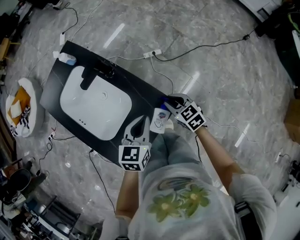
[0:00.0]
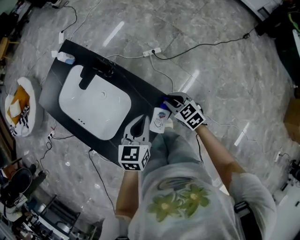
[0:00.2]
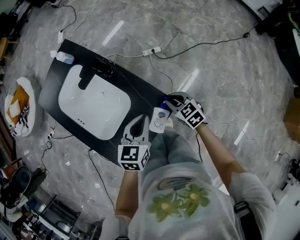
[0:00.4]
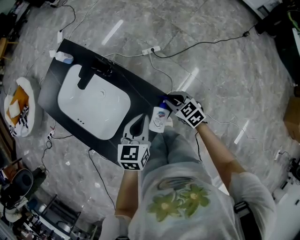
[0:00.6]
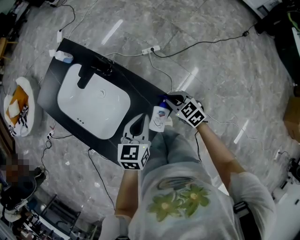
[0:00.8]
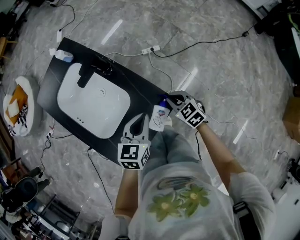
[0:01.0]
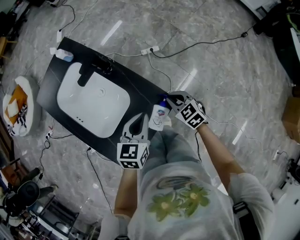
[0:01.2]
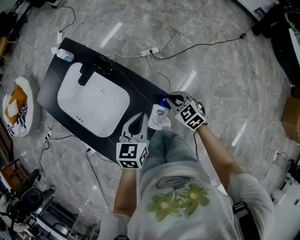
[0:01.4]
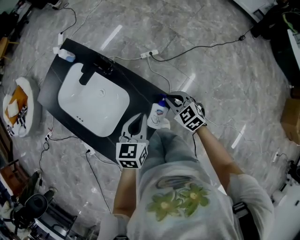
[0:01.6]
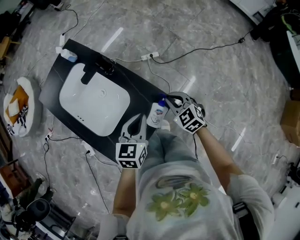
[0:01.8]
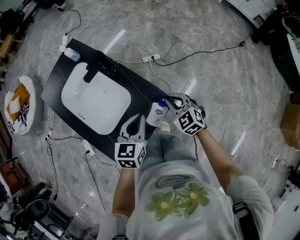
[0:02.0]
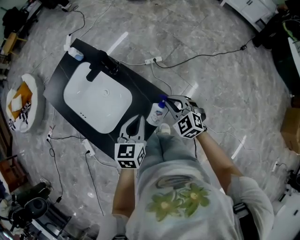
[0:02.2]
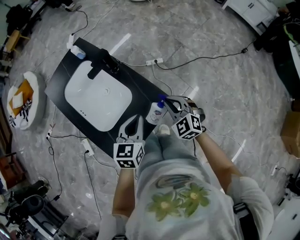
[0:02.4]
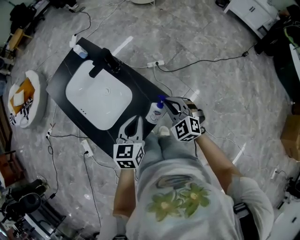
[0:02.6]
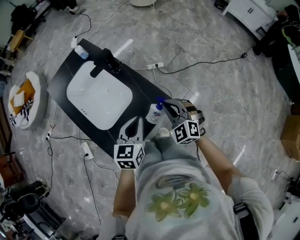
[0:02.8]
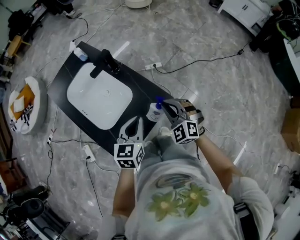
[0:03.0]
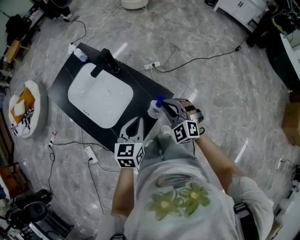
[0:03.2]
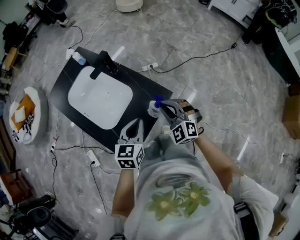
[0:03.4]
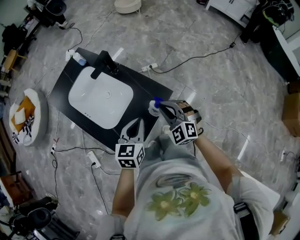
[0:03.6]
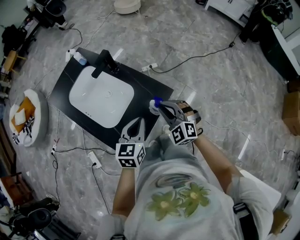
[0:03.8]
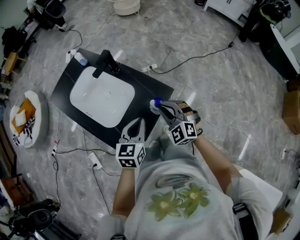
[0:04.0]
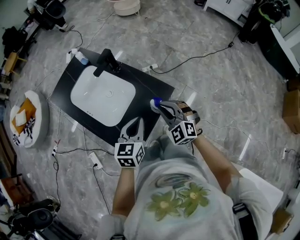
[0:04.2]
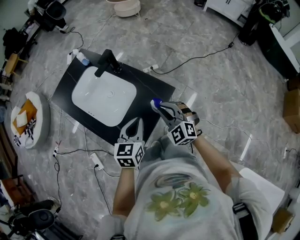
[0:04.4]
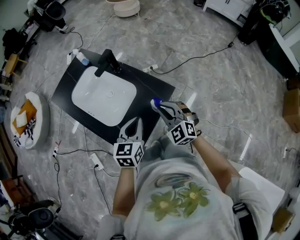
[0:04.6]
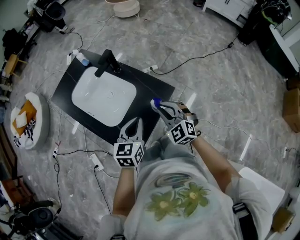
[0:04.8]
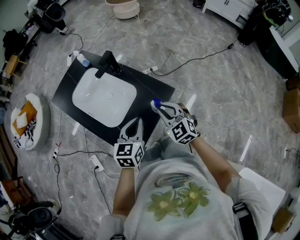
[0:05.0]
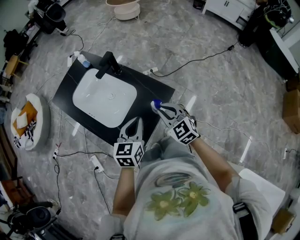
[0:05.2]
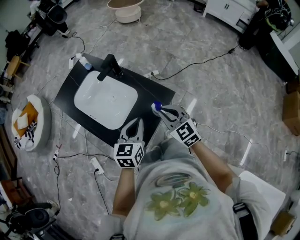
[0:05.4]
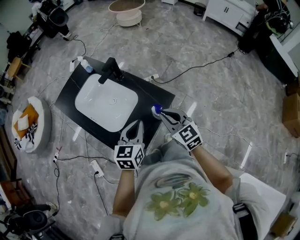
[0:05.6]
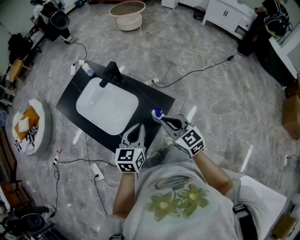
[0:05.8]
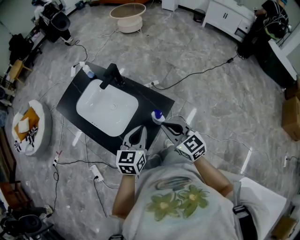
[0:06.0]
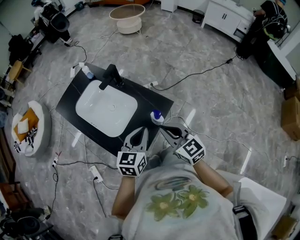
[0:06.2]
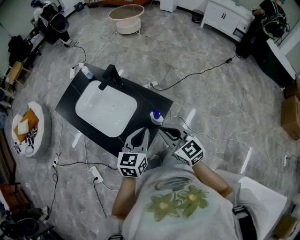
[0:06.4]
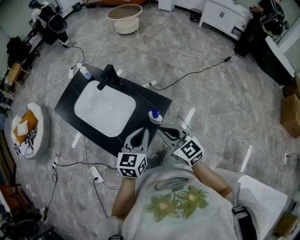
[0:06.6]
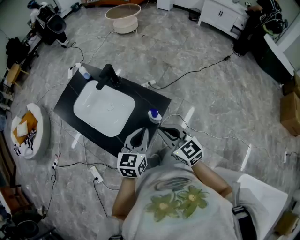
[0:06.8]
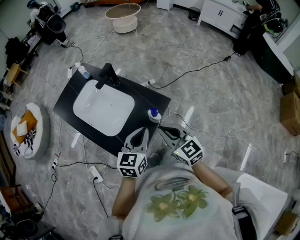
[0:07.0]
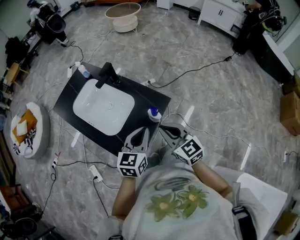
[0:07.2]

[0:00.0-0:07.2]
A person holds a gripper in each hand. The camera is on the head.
0:00.0 to 0:01.4: The grippers move only a little.
0:01.4 to 0:02.8: The right gripper shifts about 15 cm upward and backward, and turns by roughly 30 degrees; the left gripper moves backward, about 10 cm.
0:02.8 to 0:04.4: The grippers both shift backward and to the left by approximately 10 cm.
0:04.4 to 0:05.8: The right gripper is displaced upward by roughly 5 cm, and swivels about 40 degrees.
0:05.8 to 0:07.2: The grippers move only a little.

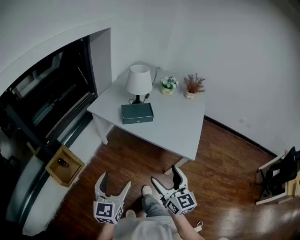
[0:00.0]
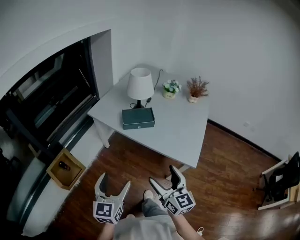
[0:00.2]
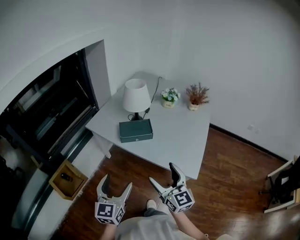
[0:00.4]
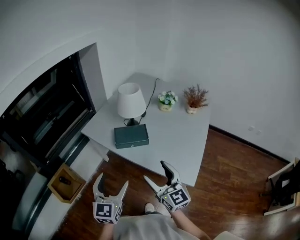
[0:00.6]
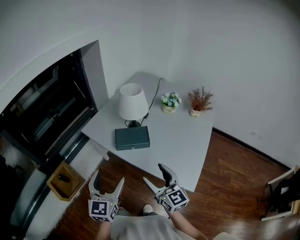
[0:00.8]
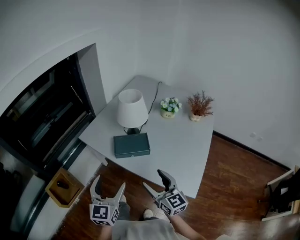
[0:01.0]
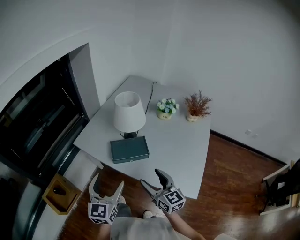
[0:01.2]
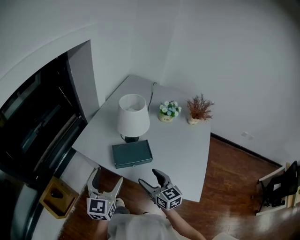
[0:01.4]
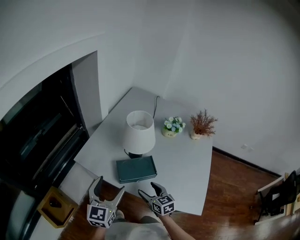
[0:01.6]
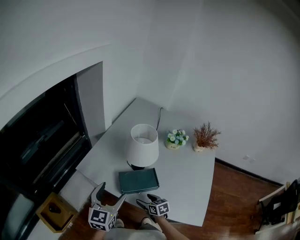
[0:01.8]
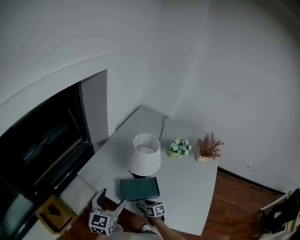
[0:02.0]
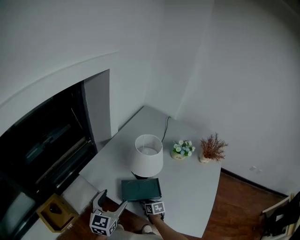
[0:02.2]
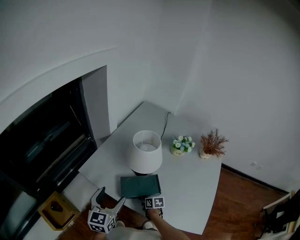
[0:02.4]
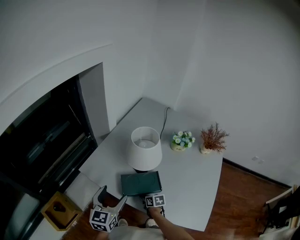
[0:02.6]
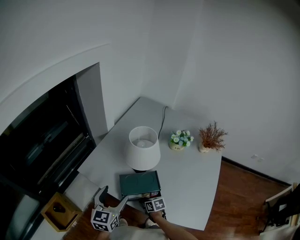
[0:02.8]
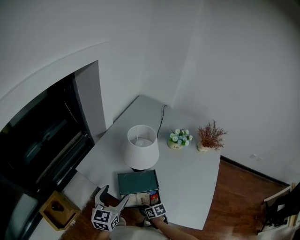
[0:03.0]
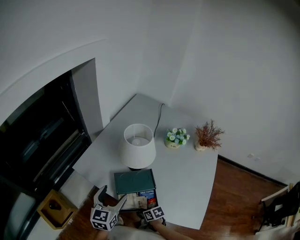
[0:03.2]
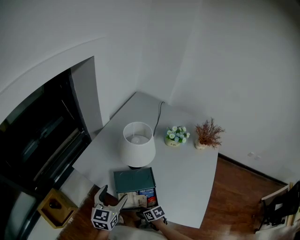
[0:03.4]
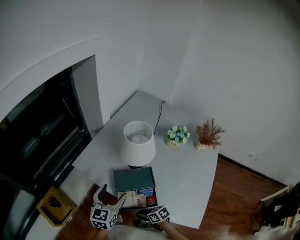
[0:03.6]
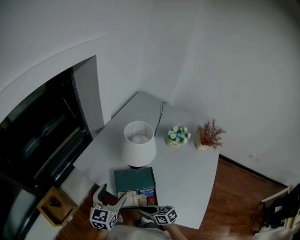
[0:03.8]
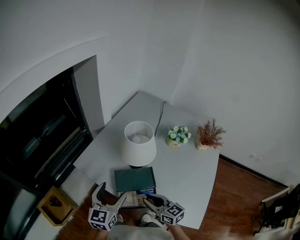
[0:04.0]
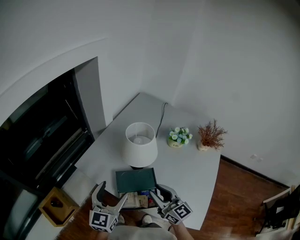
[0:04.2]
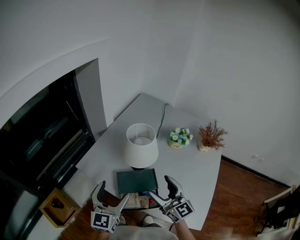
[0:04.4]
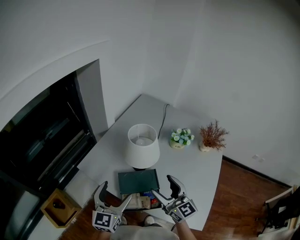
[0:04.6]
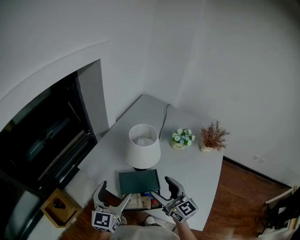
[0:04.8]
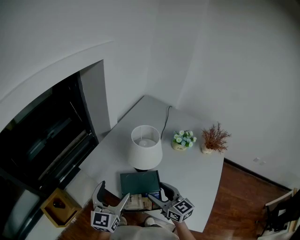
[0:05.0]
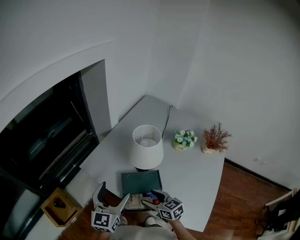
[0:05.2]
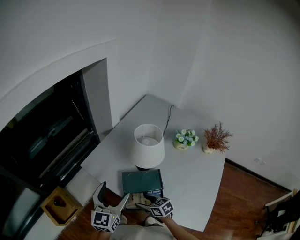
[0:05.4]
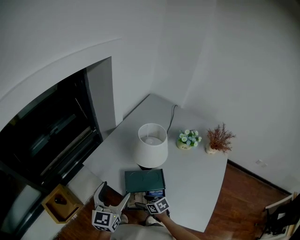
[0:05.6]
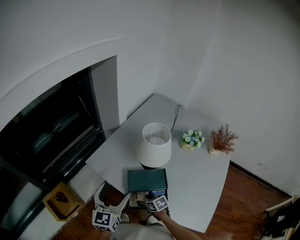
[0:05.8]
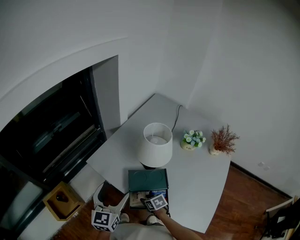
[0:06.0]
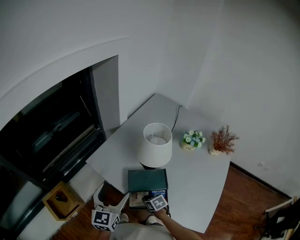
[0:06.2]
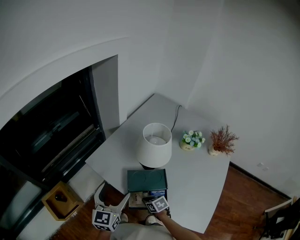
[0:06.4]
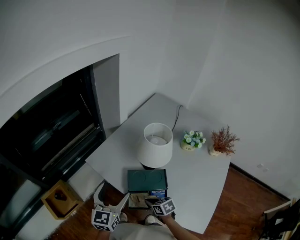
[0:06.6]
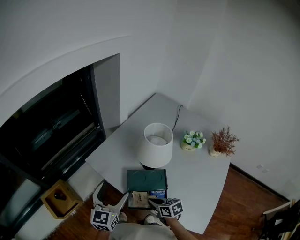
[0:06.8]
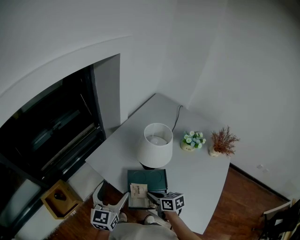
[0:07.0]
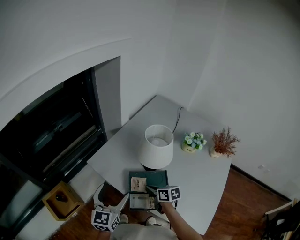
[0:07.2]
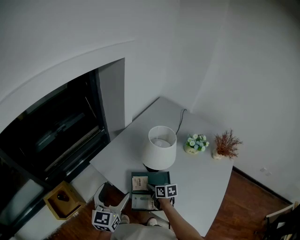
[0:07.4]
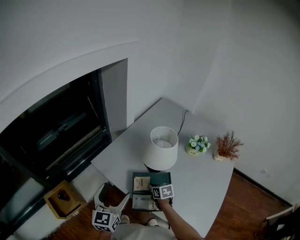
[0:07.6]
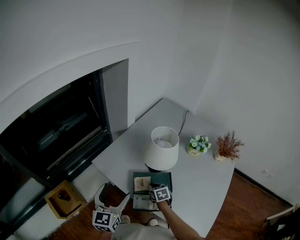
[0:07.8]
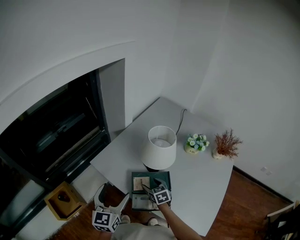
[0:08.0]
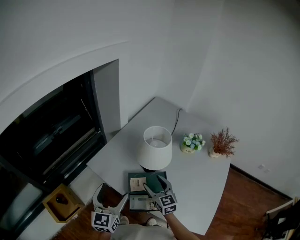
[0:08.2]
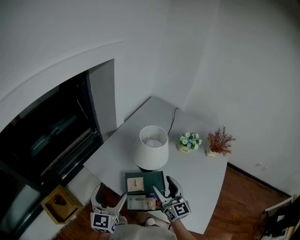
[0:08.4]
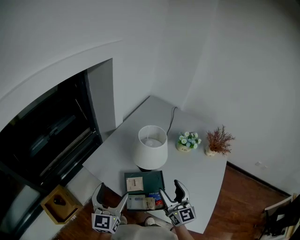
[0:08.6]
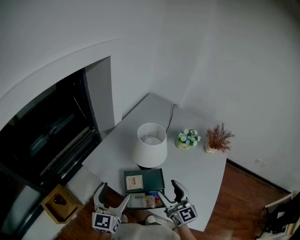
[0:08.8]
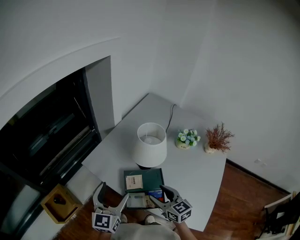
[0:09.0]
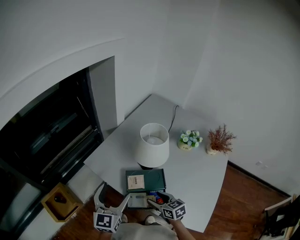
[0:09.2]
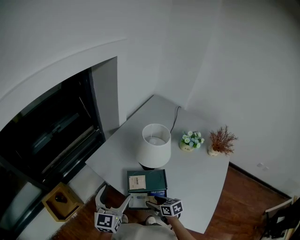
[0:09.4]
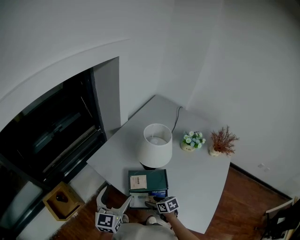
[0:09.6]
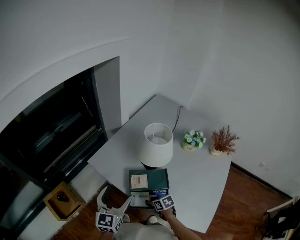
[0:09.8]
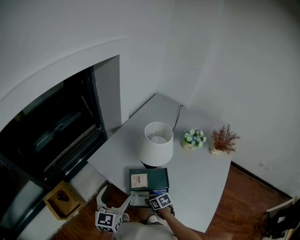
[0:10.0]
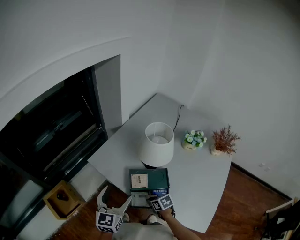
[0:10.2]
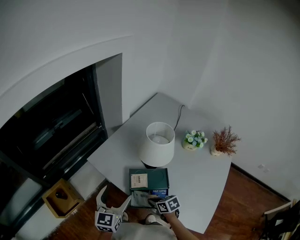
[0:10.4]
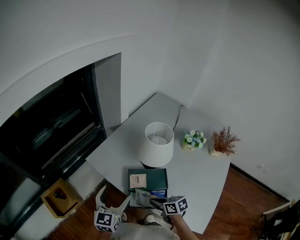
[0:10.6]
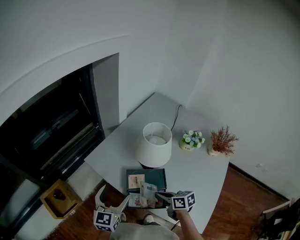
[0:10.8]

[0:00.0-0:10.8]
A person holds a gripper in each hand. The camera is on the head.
0:00.0 to 0:01.6: The left gripper goes roughly 40 cm forward, while the right gripper moves forward and downward, approximately 40 cm, and swivels about 30 degrees.
0:01.6 to 0:03.0: The left gripper shifts by some 5 cm, while the right gripper shifts about 15 cm downward, swivels approximately 40 degrees, and closes.
0:03.0 to 0:04.6: The left gripper travels upward by roughly 5 cm. The right gripper goes some 35 cm upward, angles its fingers upward, by approximately 50 degrees, and opens.
0:04.6 to 0:06.2: The left gripper is displaced to the left by roughly 5 cm. The right gripper travels downward by approximately 30 cm, angles its fingers downward, by about 60 degrees, and closes its fingers.
0:06.2 to 0:07.8: The right gripper moves forward and upward, about 10 cm.
0:07.8 to 0:09.2: The right gripper travels backward by roughly 10 cm, travels upward and back again, about 25 cm each way, changes its angle by about 20 degrees, and opens its fingers.
0:09.2 to 0:10.8: The right gripper moves roughly 15 cm downward and comes back, rotates approximately 20 degrees, and closes up.

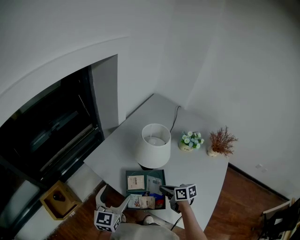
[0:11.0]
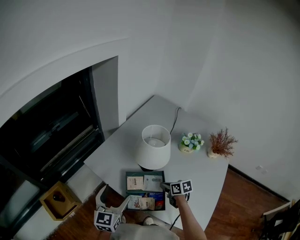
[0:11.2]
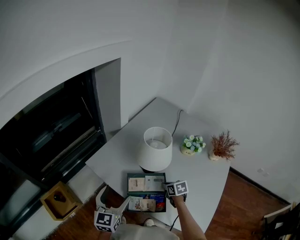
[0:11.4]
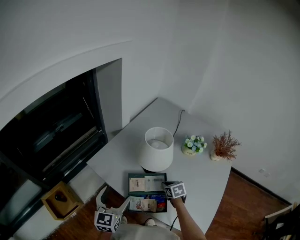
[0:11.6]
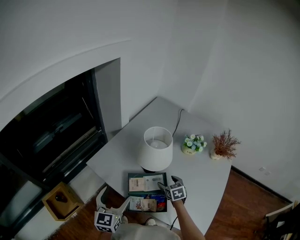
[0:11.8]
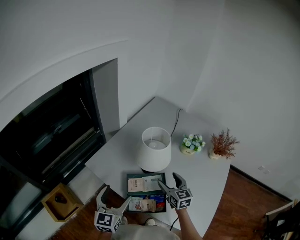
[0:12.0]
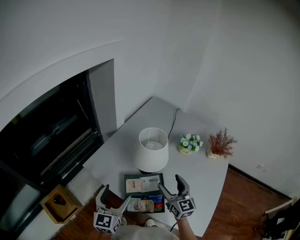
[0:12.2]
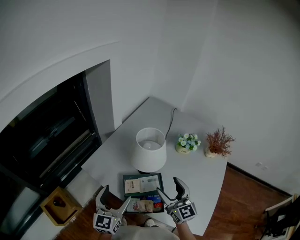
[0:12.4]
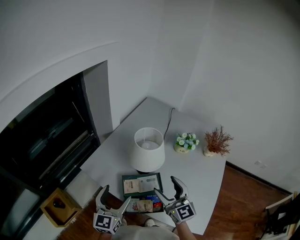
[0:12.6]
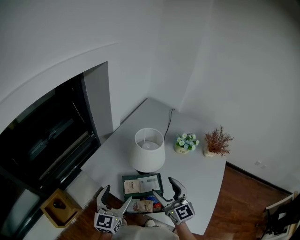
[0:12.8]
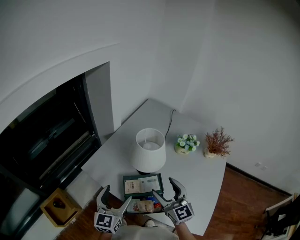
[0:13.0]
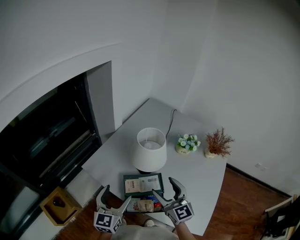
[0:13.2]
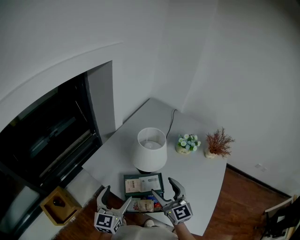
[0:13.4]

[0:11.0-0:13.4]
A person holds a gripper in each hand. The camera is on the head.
0:11.0 to 0:12.2: The right gripper heads upward, covering about 15 cm, changes its angle by approximately 60 degrees, and opens.
0:12.2 to 0:13.4: The right gripper changes place by roughly 5 cm.

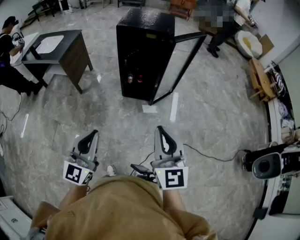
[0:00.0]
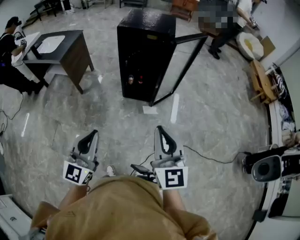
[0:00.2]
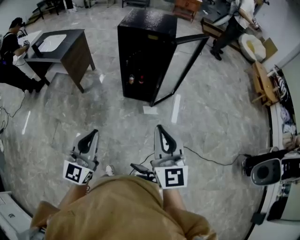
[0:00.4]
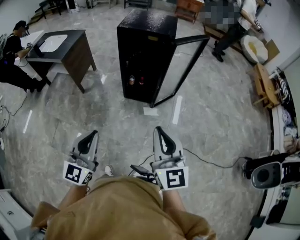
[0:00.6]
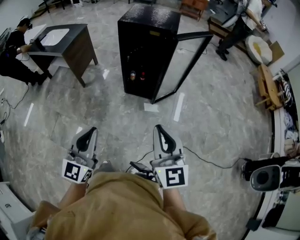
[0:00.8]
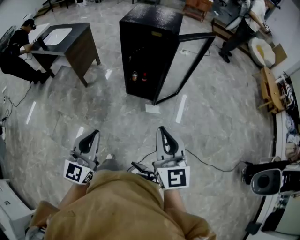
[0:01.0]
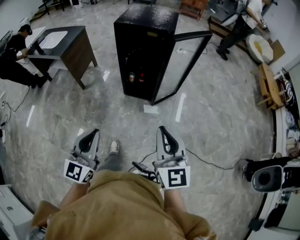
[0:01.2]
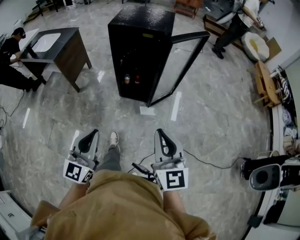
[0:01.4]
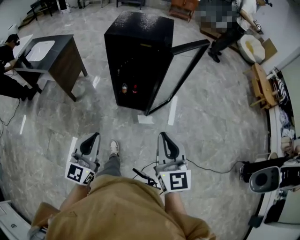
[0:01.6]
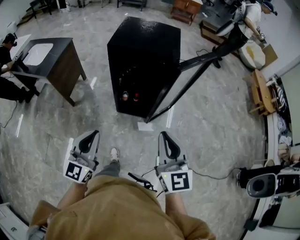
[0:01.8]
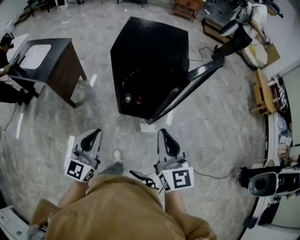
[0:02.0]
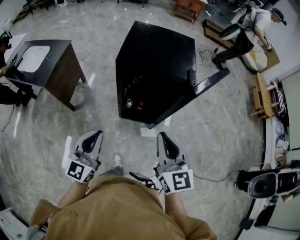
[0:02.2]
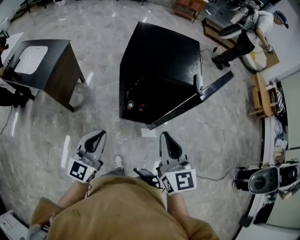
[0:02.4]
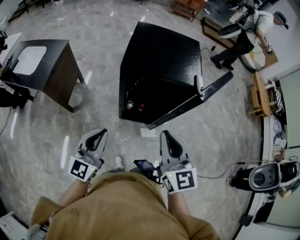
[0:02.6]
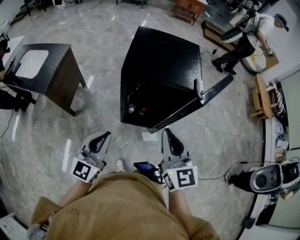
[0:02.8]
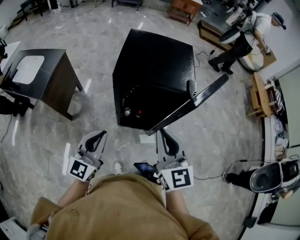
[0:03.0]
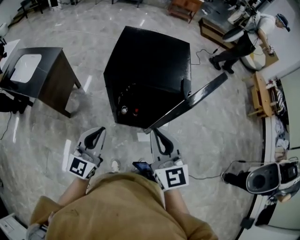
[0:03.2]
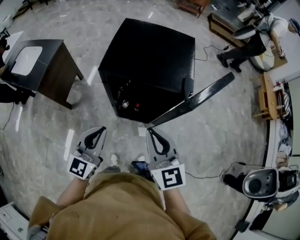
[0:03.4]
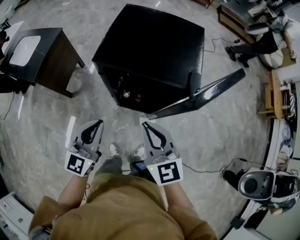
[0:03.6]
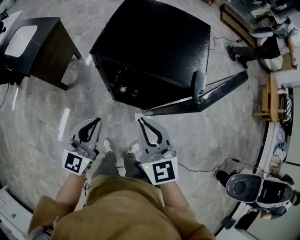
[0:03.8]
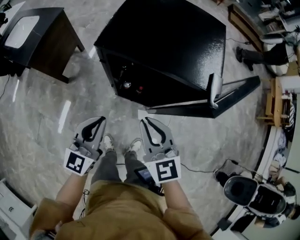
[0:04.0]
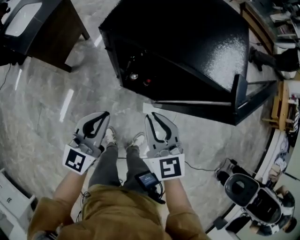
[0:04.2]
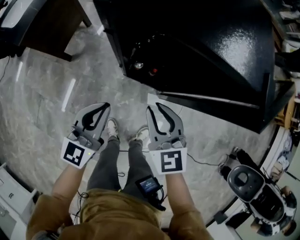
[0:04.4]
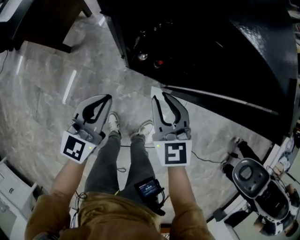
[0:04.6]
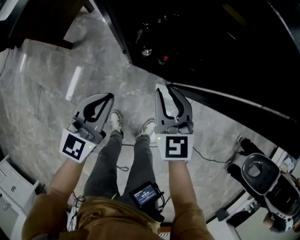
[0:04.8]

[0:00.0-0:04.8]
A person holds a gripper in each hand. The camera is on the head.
0:00.0 to 0:01.6: The two grippers go roughly 15 cm forward.
0:01.6 to 0:03.2: The left gripper is displaced forward by some 30 cm. The right gripper heads forward and to the left, covering about 35 cm.
0:03.2 to 0:04.8: The grippers both shift downward by approximately 35 cm. The right gripper rotates some 20 degrees.
